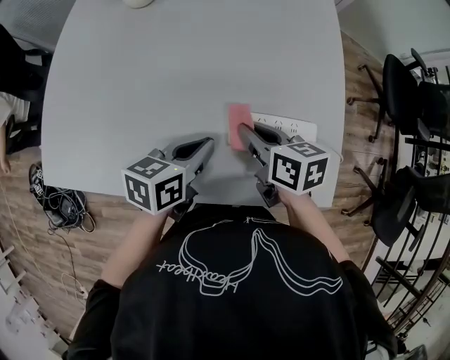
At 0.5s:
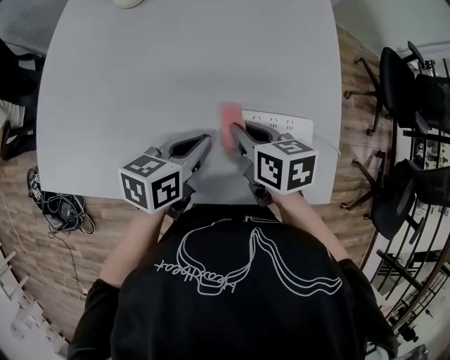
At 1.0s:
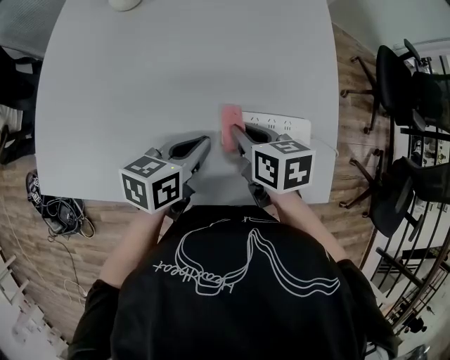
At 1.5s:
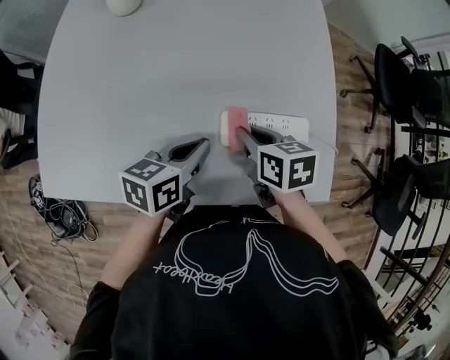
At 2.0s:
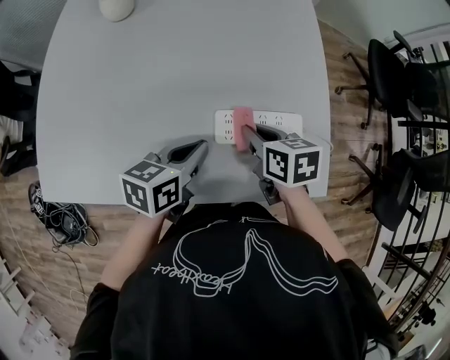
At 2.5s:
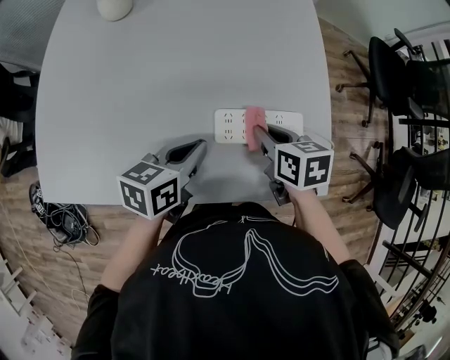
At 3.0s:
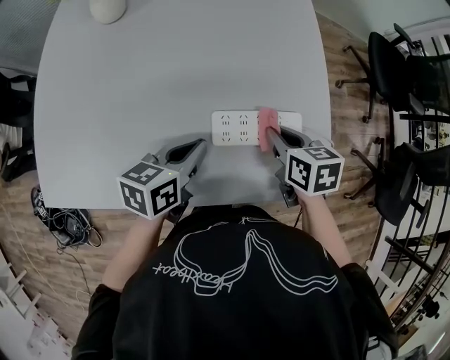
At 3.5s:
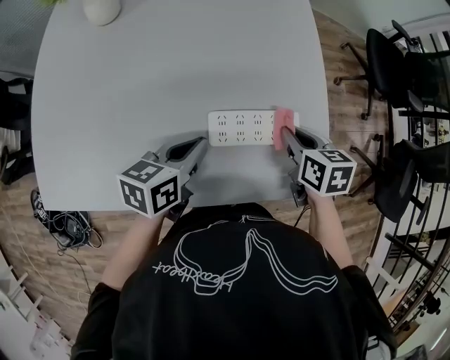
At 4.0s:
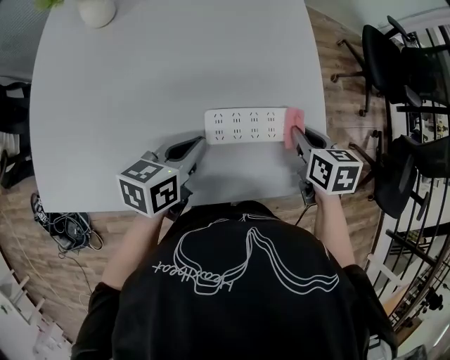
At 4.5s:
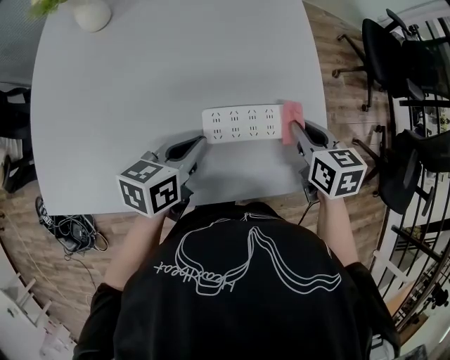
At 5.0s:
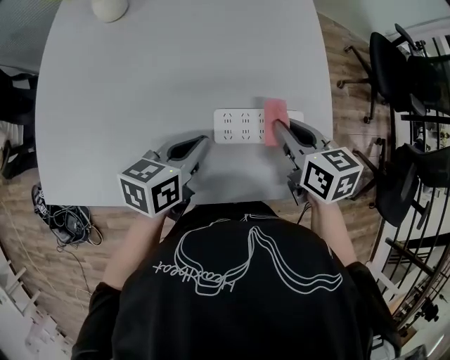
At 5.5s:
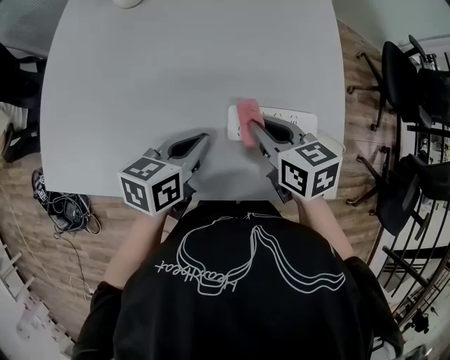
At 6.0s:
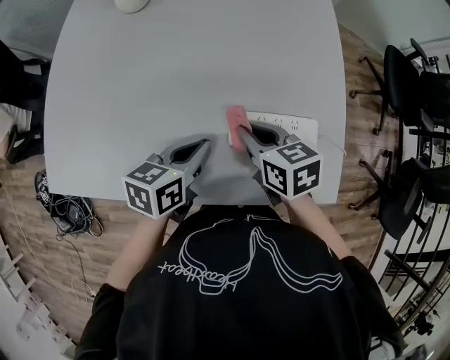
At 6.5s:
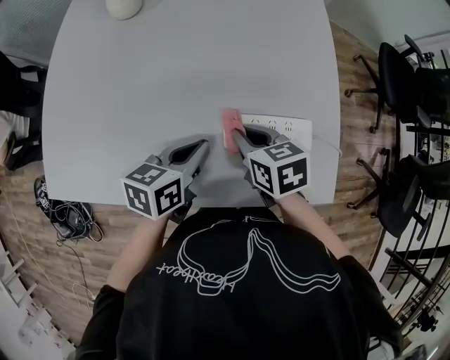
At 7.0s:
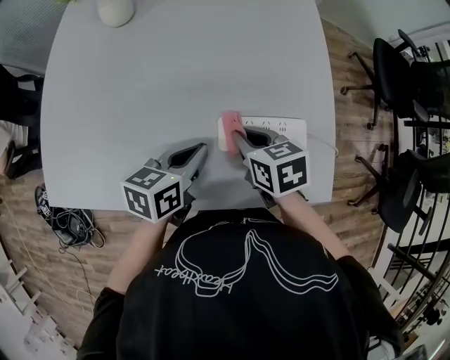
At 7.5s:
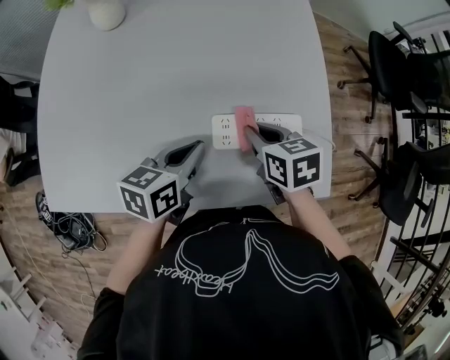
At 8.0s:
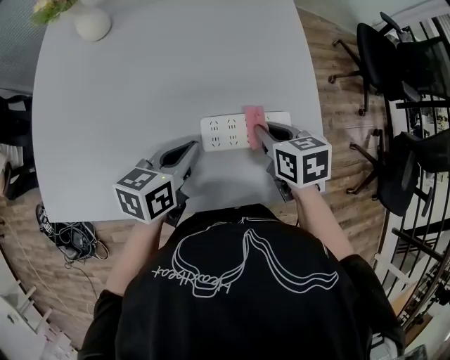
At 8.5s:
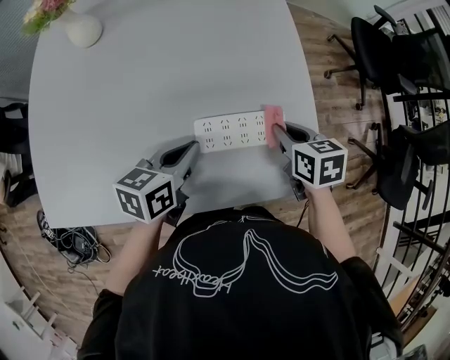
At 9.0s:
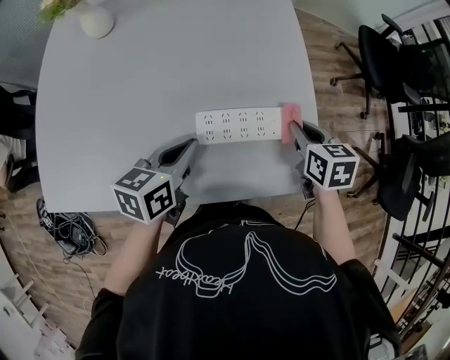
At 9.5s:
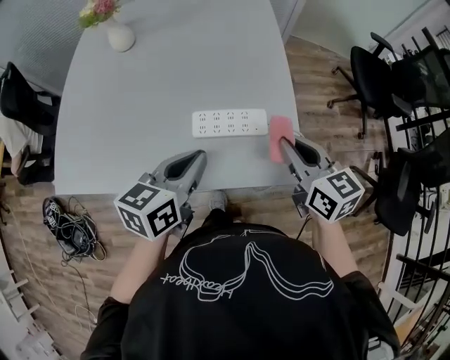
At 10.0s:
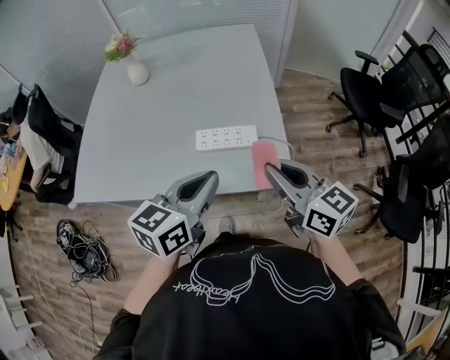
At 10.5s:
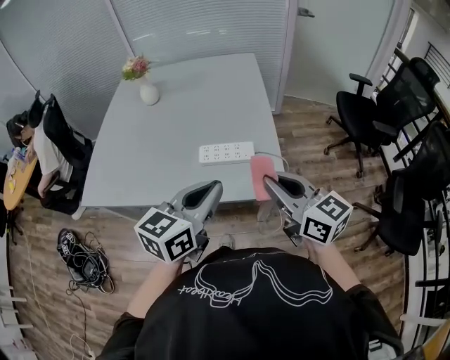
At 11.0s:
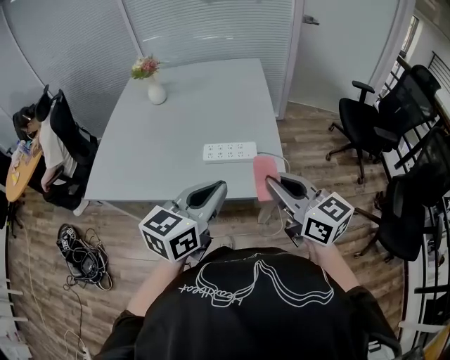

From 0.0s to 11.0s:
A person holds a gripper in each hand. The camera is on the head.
From 0.0s to 2.0s: The right gripper ends up approximately 5 cm from where it was.
From 2.0s to 3.5s: The right gripper is displaced to the right by about 10 cm.
From 3.5s to 5.5s: The right gripper travels to the left by roughly 15 cm, and changes its angle by roughly 20 degrees.
From 5.5s to 7.5s: The grippers make only small movements.
From 7.5s to 9.0s: The right gripper is displaced to the right by some 15 cm.
From 9.0s to 11.0s: The left gripper moves backward, upward and to the right, some 40 cm, and rotates roughly 30 degrees. Meanwhile the right gripper heads backward and upward, covering roughly 40 cm, and tilts its fingers roughly 40 degrees upward.

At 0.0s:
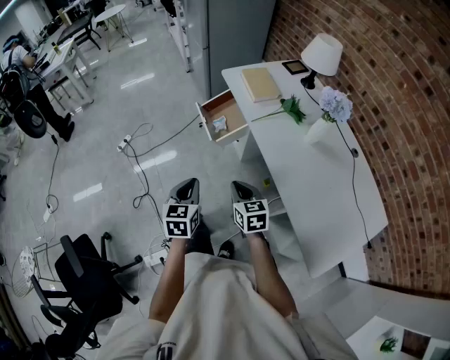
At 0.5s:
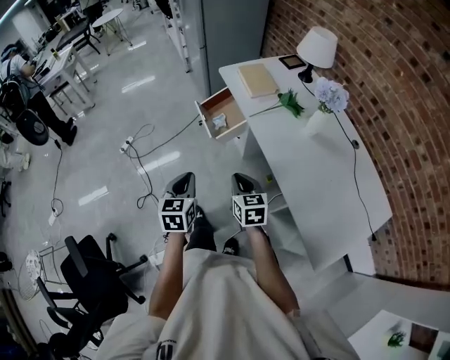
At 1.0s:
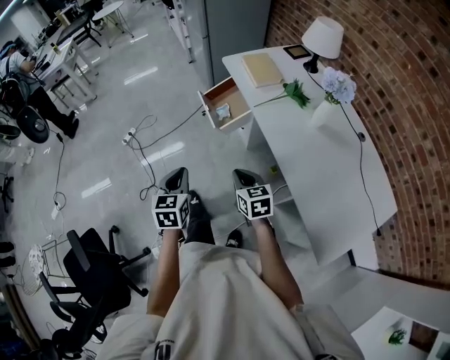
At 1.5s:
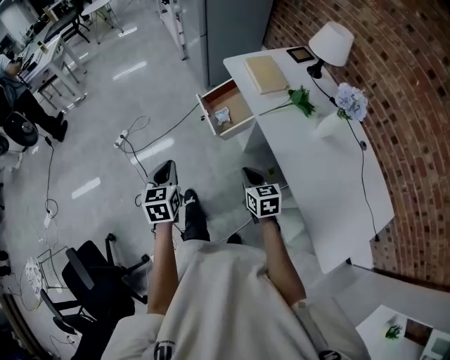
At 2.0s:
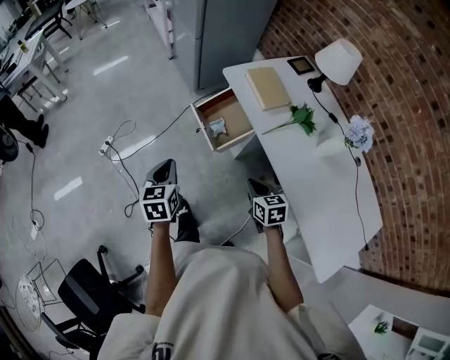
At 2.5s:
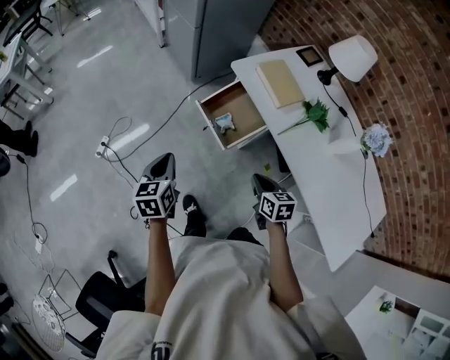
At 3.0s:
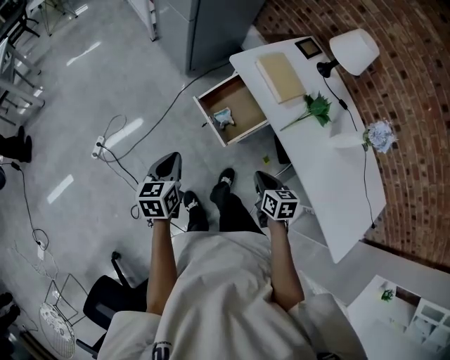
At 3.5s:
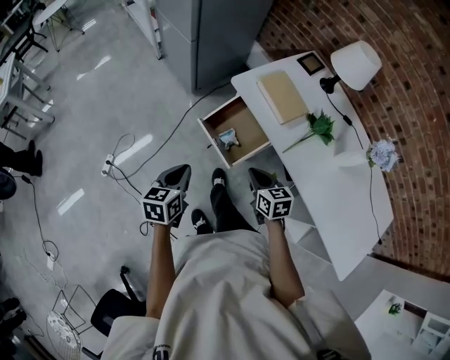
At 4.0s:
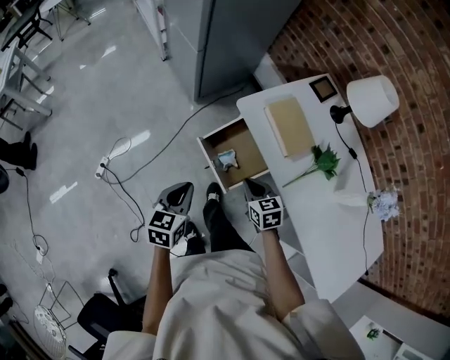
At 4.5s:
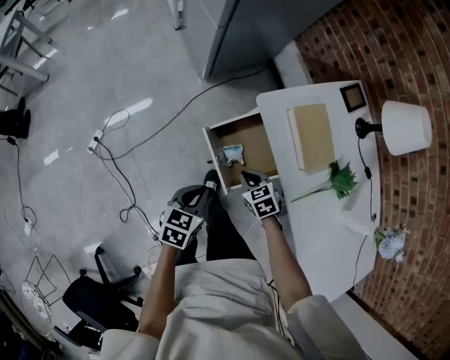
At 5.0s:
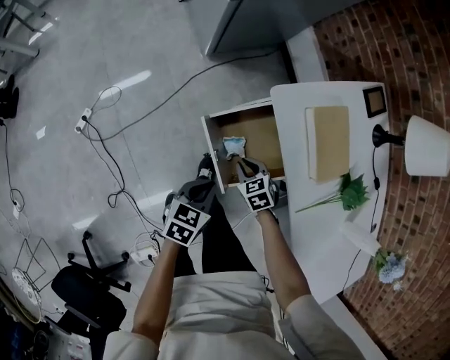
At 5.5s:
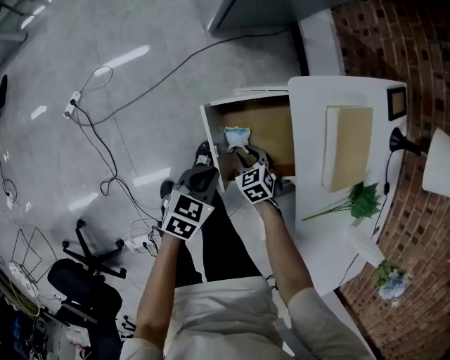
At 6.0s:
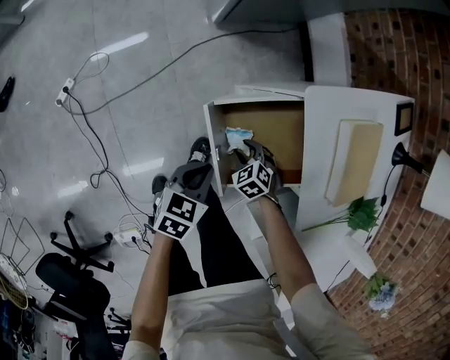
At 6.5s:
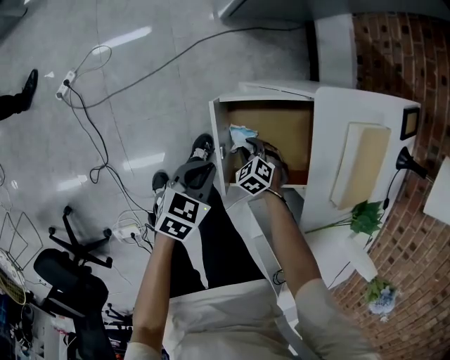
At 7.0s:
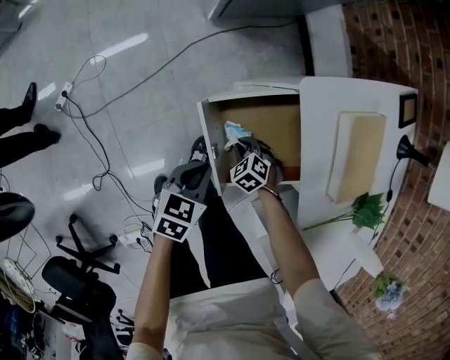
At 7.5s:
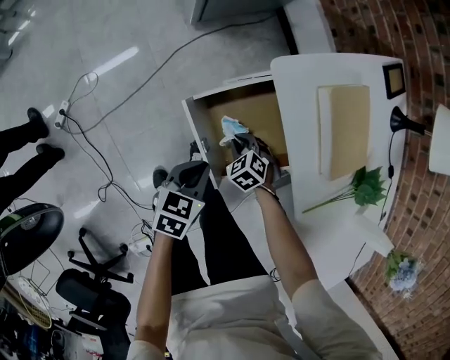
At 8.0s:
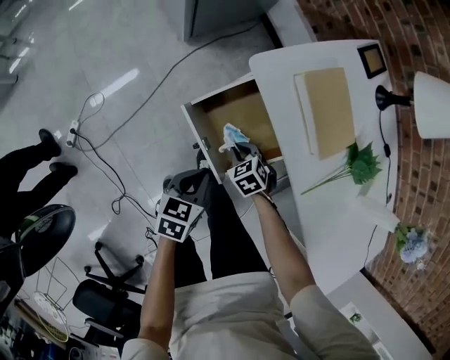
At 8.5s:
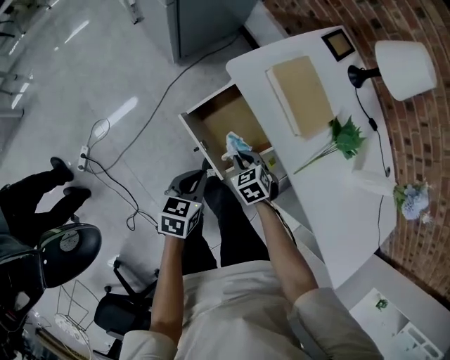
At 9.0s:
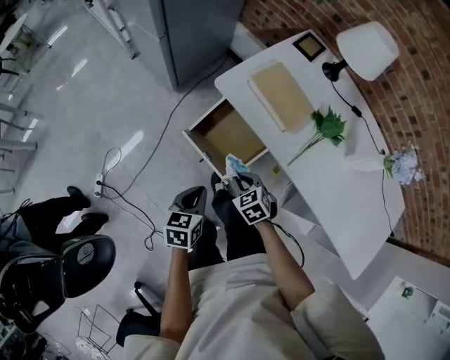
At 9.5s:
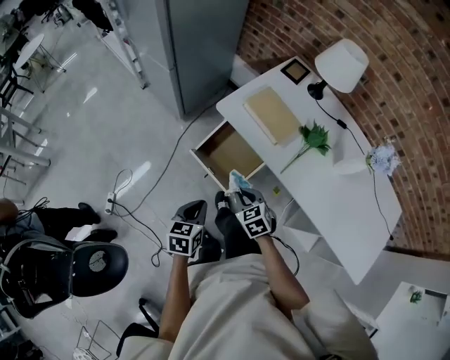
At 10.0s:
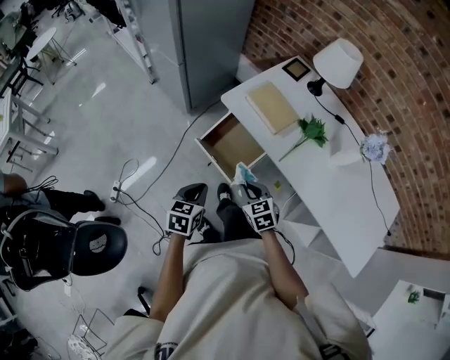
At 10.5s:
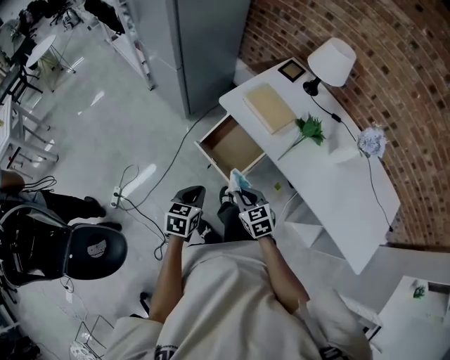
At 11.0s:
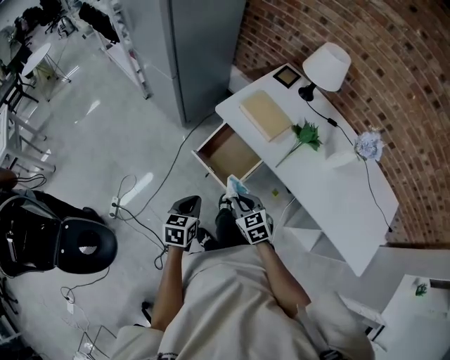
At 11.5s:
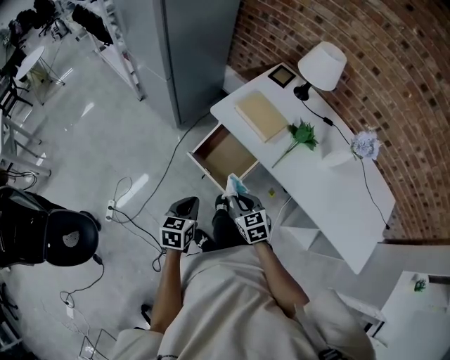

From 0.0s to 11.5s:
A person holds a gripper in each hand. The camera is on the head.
From 0.0s to 2.0s: The left gripper travels forward and to the left by some 25 cm; the right gripper heads forward, covering roughly 15 cm.
From 2.0s to 4.0s: The two grippers go about 25 cm forward. The left gripper swivels about 20 degrees.
From 4.0s to 6.0s: Both grippers travel together downward, roughly 30 cm. The right gripper tilts its fingers roughly 30 degrees downward, and opens.
From 6.0s to 7.5s: The right gripper closes up.
From 7.5s to 9.5s: Both grippers move upward, approximately 25 cm. The right gripper changes its angle by some 40 degrees.
From 9.5s to 11.5s: The right gripper heads backward, covering approximately 5 cm.

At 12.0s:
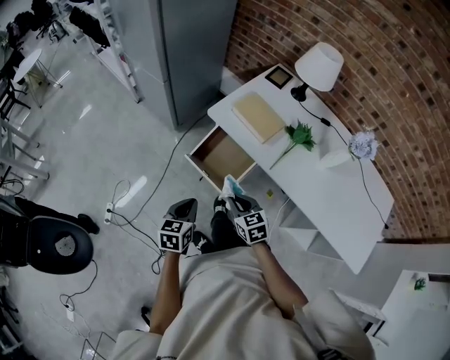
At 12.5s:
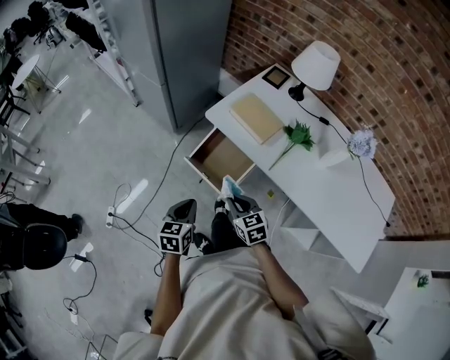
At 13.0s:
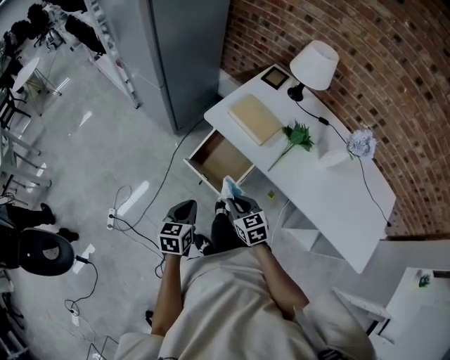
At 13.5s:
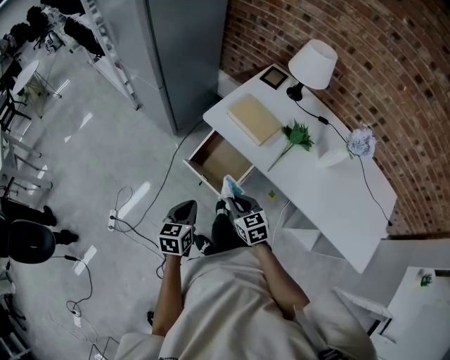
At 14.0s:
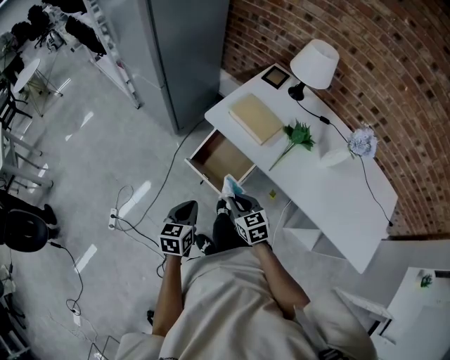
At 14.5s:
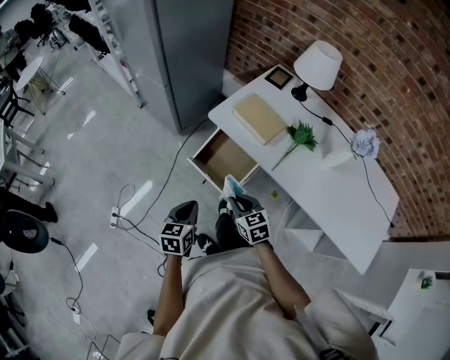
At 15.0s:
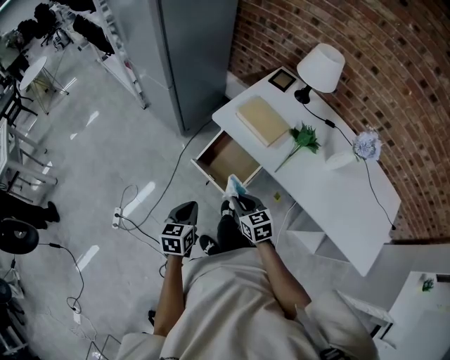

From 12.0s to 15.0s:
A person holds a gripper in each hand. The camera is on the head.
From 12.0s to 15.0s: The grippers move only a little.

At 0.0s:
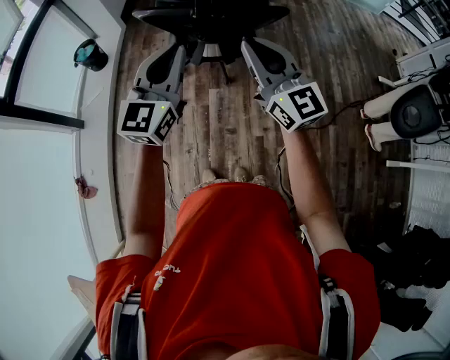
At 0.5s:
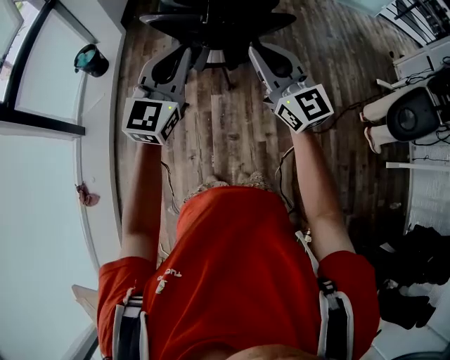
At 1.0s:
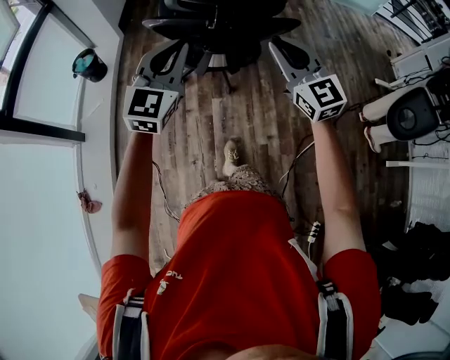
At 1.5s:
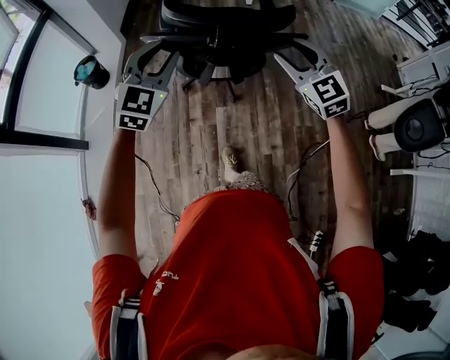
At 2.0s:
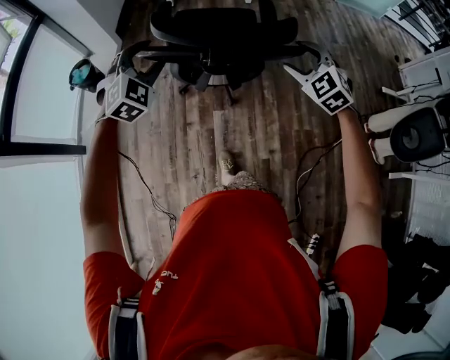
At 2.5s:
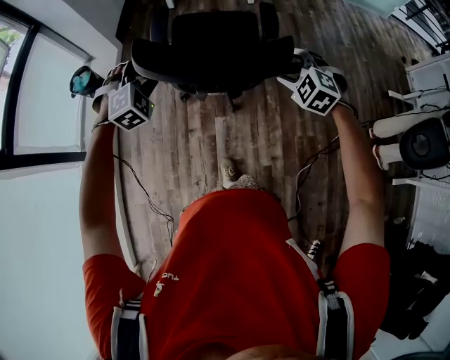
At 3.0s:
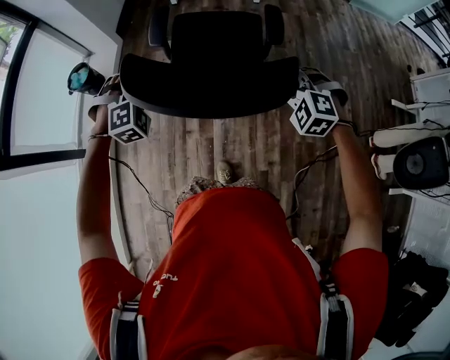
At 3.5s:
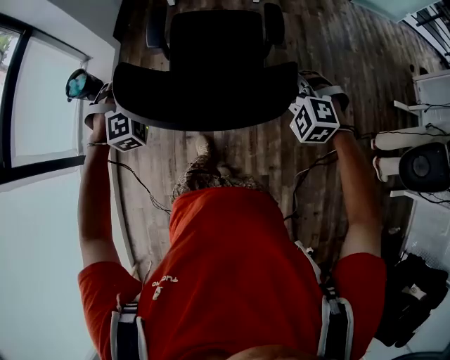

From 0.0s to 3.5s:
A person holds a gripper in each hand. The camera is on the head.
From 0.0s to 2.0s: The left gripper is displaced forward and downward by roughly 25 cm, tilts its fingers about 40 degrees downward, and opens up; the right gripper goes roughly 25 cm forward, downward and to the right, points its fingers some 50 degrees further downward, and opens.
From 2.0s to 3.5s: The grippers both shift forward and downward by some 15 cm. The right gripper swivels roughly 30 degrees, and closes up. Meanwhile the left gripper turns by roughly 30 degrees, and closes up.
